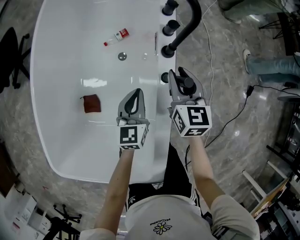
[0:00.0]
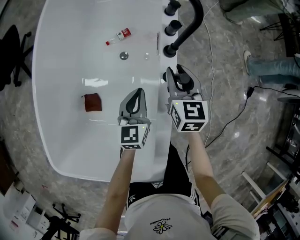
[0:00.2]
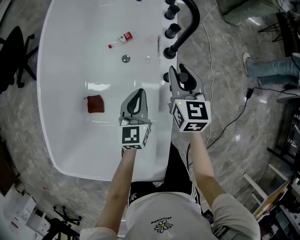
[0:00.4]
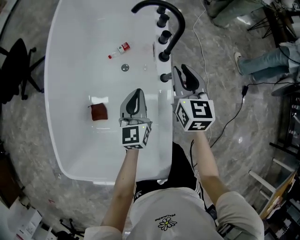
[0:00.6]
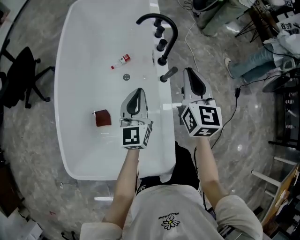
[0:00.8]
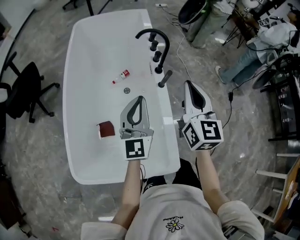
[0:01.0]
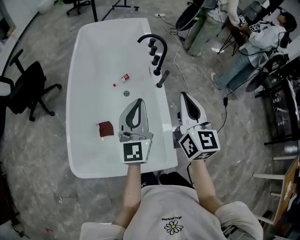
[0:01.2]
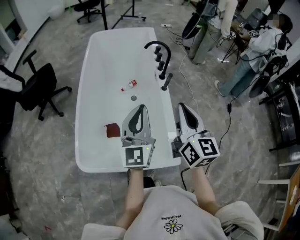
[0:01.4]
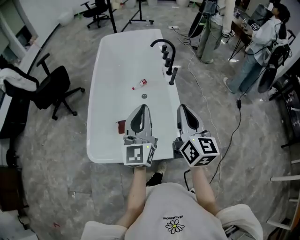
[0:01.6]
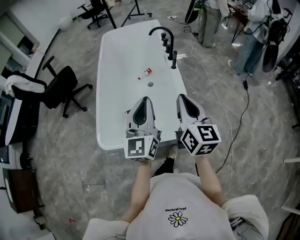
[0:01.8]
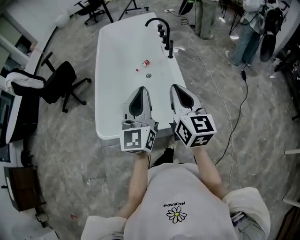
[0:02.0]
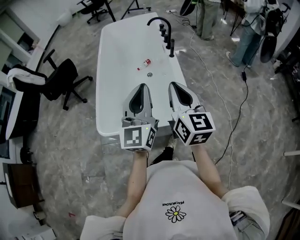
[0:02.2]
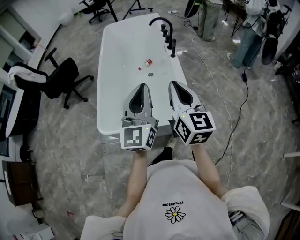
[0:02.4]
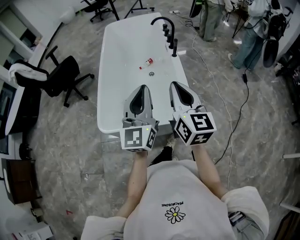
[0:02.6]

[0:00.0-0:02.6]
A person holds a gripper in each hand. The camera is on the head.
0:00.0 to 0:01.2: Both grippers travel together upward and backward, roughly 50 cm. The left gripper points its fingers about 30 degrees further upward, while the right gripper turns by approximately 30 degrees, and closes its fingers.
0:01.2 to 0:02.6: Both grippers travel together backward, about 20 cm.

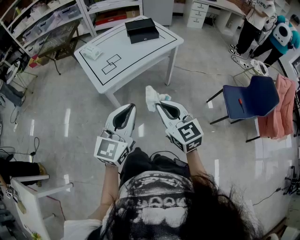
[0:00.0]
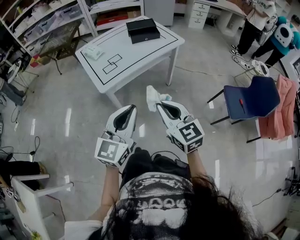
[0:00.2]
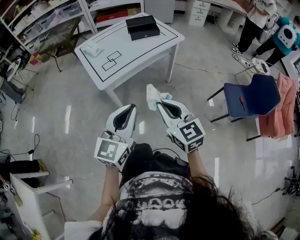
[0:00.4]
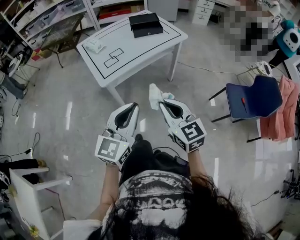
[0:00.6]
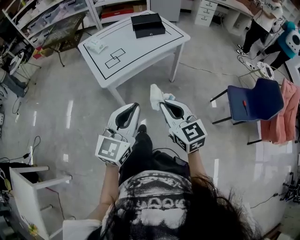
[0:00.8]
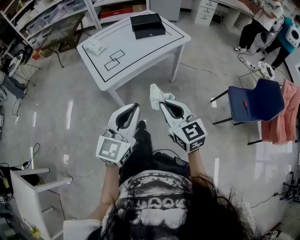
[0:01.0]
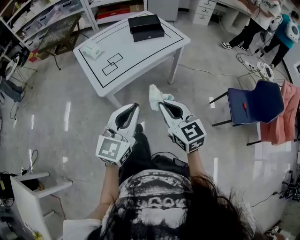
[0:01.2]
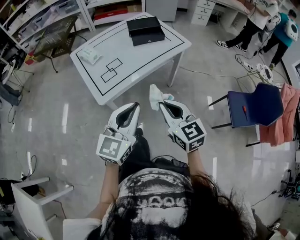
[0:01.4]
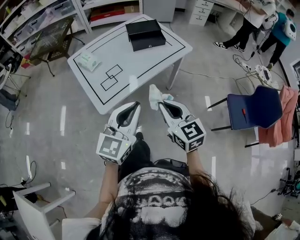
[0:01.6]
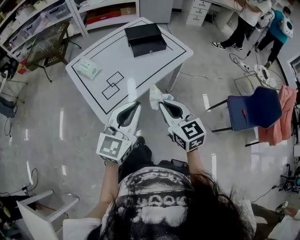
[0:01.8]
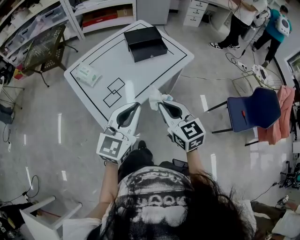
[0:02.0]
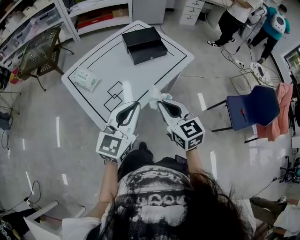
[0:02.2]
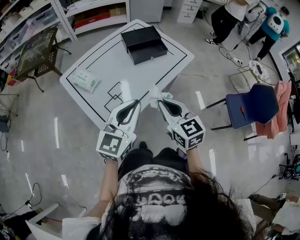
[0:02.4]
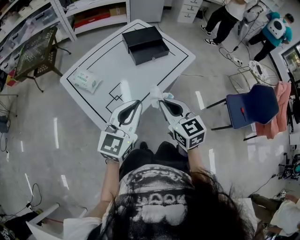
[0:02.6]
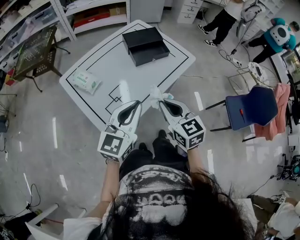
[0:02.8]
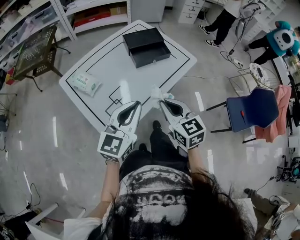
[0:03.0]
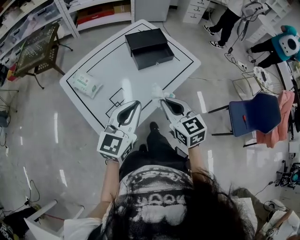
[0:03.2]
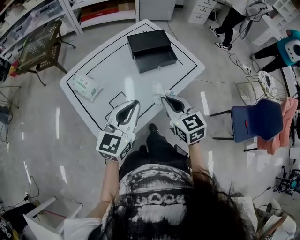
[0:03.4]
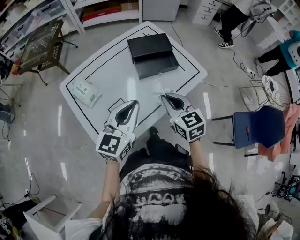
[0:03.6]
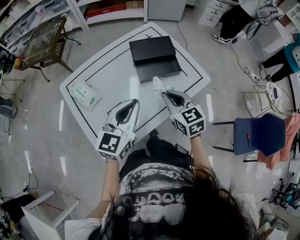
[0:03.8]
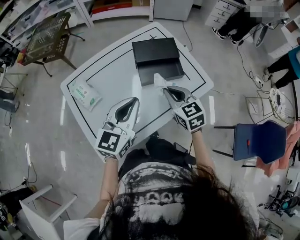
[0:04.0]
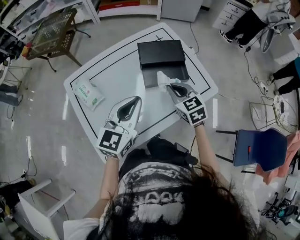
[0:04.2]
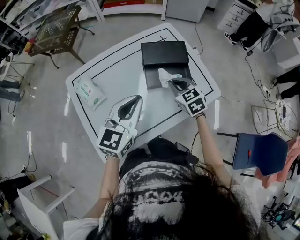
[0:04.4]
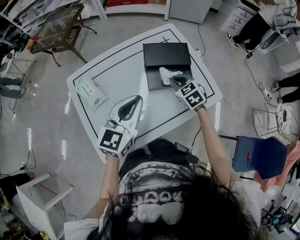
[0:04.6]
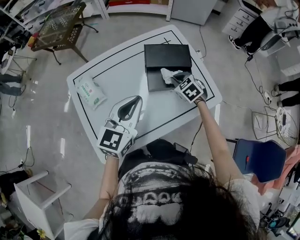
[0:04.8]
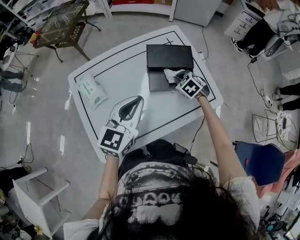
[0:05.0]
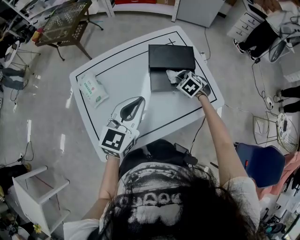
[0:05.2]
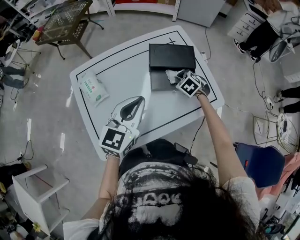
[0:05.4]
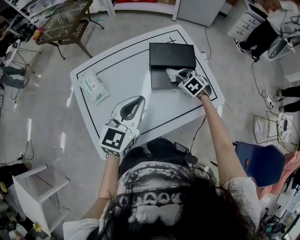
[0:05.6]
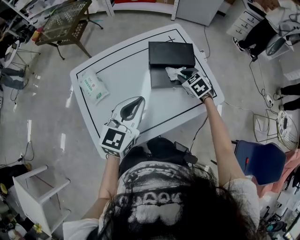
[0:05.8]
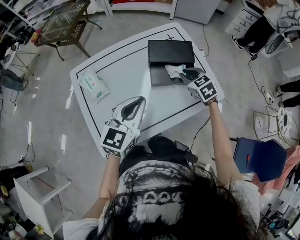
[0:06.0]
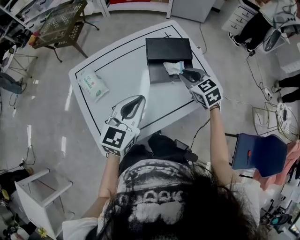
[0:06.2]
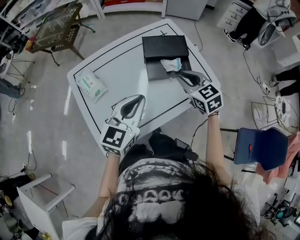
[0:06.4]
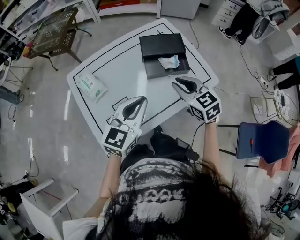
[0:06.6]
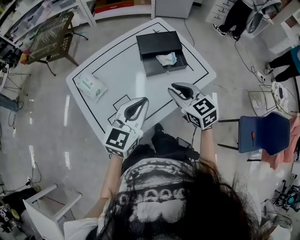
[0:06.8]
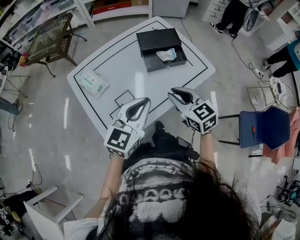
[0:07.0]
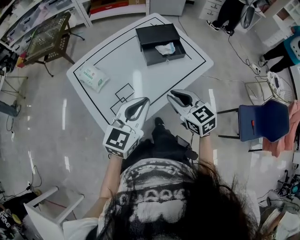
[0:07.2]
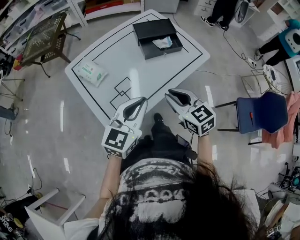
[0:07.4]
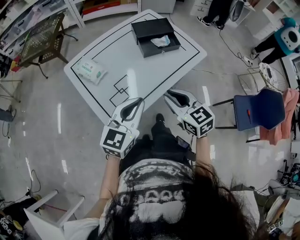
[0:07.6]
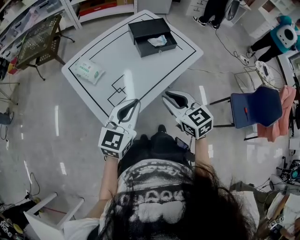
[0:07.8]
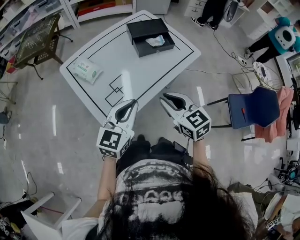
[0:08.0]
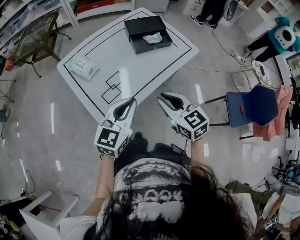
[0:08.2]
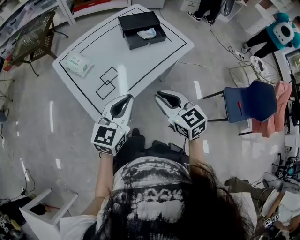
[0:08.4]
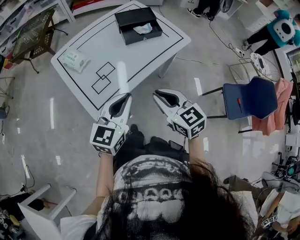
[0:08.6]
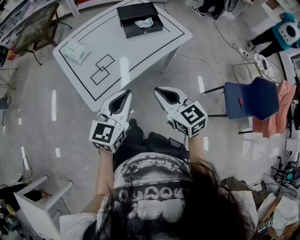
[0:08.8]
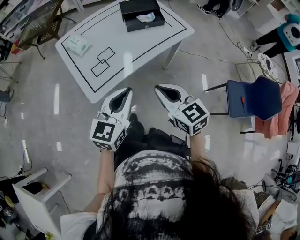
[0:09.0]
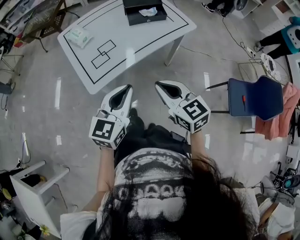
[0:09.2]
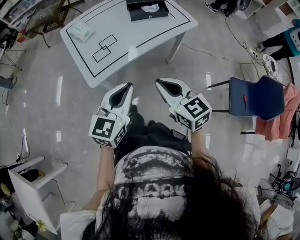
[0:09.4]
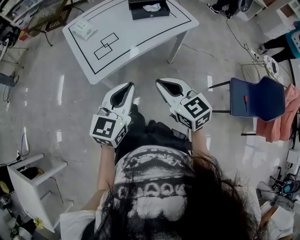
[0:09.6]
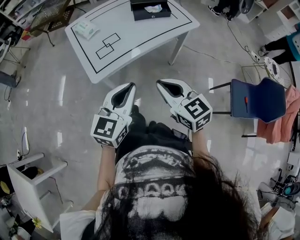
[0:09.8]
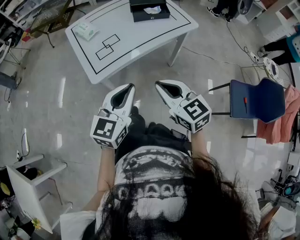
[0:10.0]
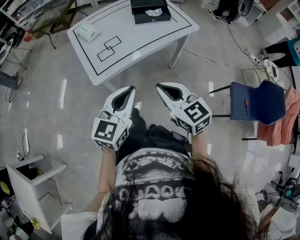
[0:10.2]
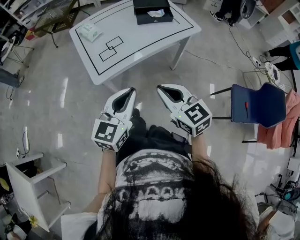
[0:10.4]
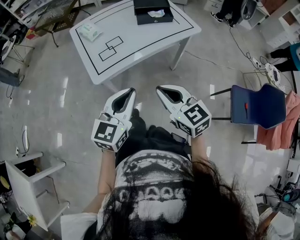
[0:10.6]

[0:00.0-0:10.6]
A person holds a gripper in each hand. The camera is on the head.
0:00.0 to 0:01.6: Both grippers move forward, some 20 cm.
0:01.6 to 0:03.0: The two grippers go about 20 cm forward and to the left.
0:03.0 to 0:04.6: The two grippers go roughly 30 cm forward. The right gripper rotates approximately 40 degrees.
0:04.6 to 0:06.0: The right gripper travels downward and back again, roughly 5 cm each way.
0:06.0 to 0:07.6: The left gripper shifts some 25 cm backward. The right gripper travels backward by about 35 cm, and turns by about 30 degrees.
0:07.6 to 0:09.0: The two grippers go some 15 cm backward and to the right.
0:09.0 to 0:10.6: The two grippers go roughly 10 cm backward.

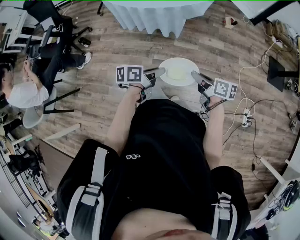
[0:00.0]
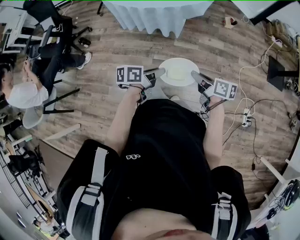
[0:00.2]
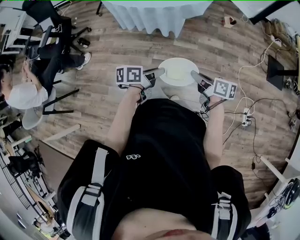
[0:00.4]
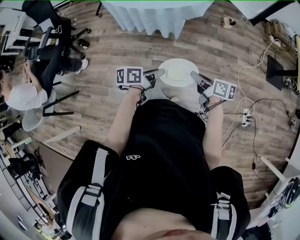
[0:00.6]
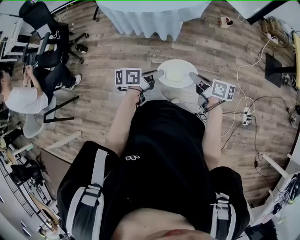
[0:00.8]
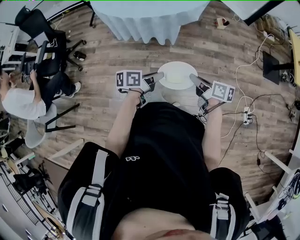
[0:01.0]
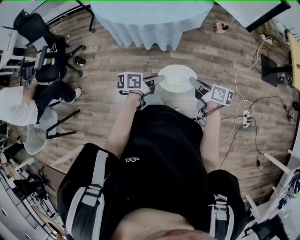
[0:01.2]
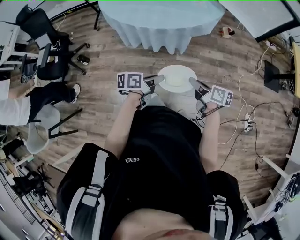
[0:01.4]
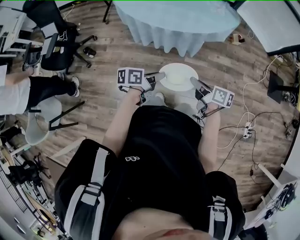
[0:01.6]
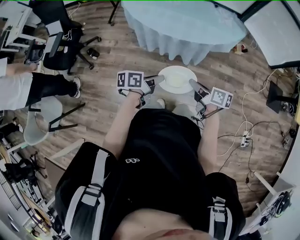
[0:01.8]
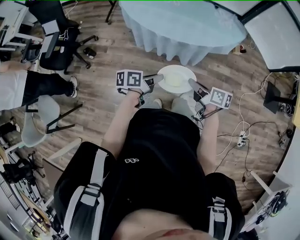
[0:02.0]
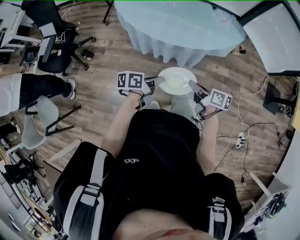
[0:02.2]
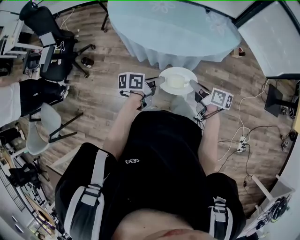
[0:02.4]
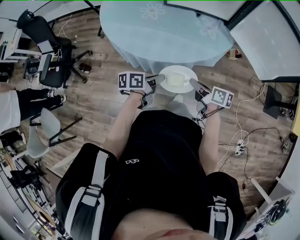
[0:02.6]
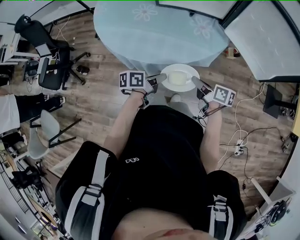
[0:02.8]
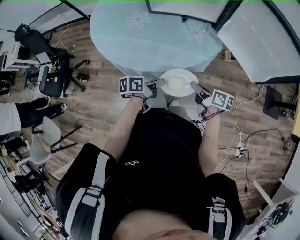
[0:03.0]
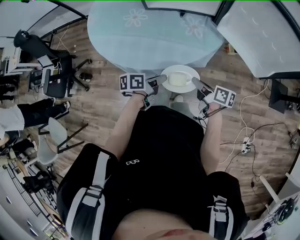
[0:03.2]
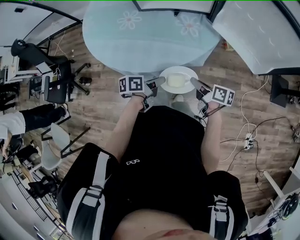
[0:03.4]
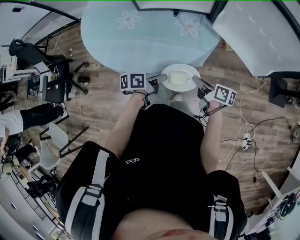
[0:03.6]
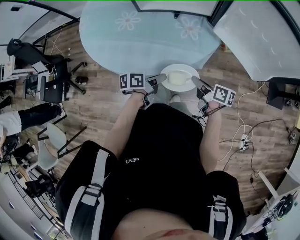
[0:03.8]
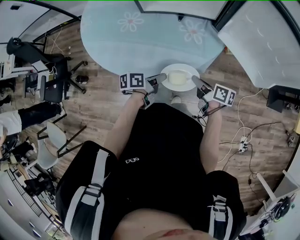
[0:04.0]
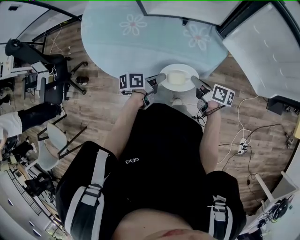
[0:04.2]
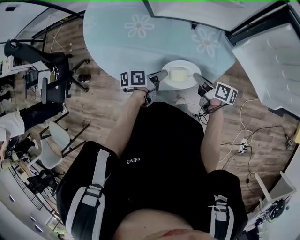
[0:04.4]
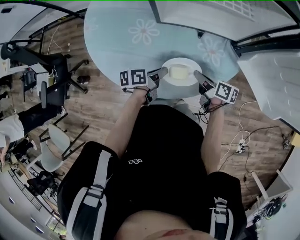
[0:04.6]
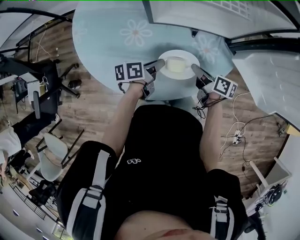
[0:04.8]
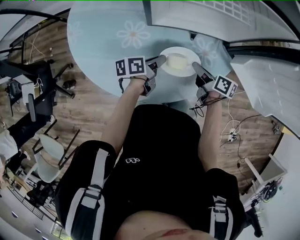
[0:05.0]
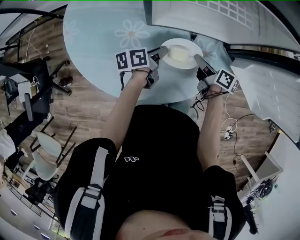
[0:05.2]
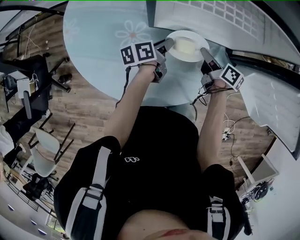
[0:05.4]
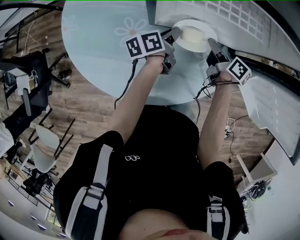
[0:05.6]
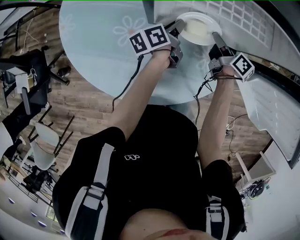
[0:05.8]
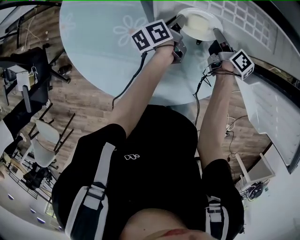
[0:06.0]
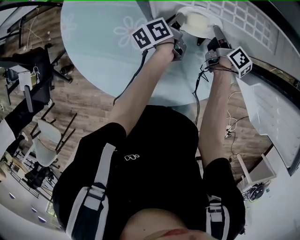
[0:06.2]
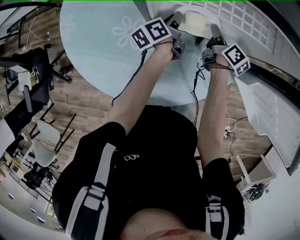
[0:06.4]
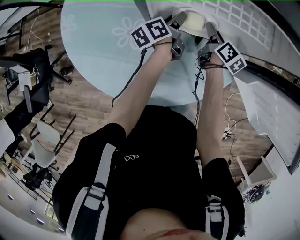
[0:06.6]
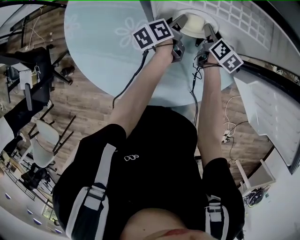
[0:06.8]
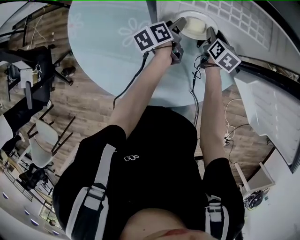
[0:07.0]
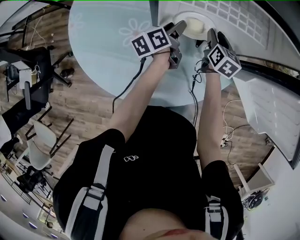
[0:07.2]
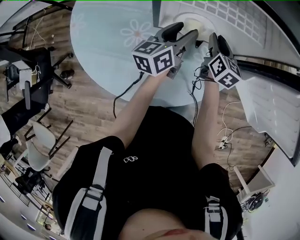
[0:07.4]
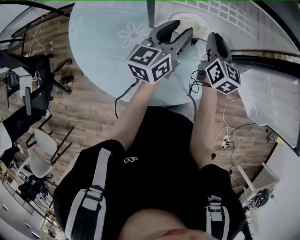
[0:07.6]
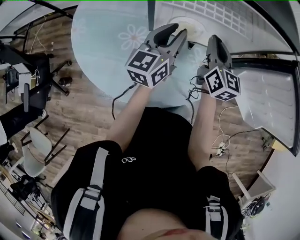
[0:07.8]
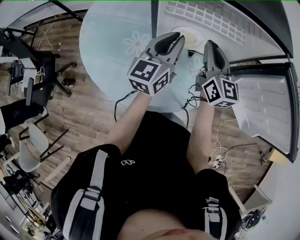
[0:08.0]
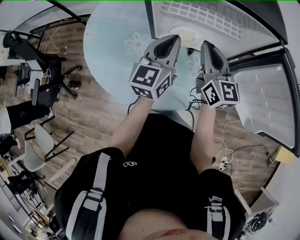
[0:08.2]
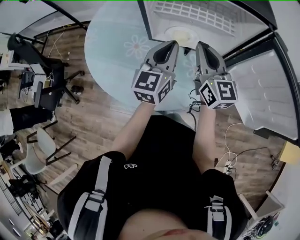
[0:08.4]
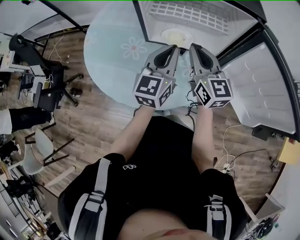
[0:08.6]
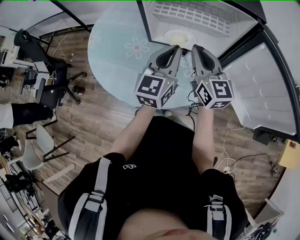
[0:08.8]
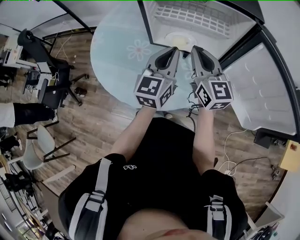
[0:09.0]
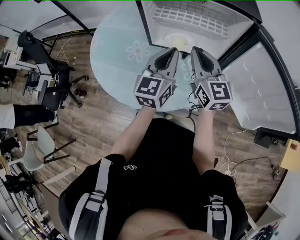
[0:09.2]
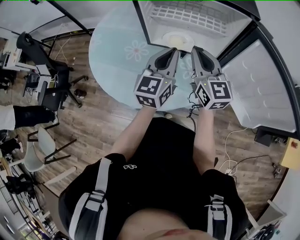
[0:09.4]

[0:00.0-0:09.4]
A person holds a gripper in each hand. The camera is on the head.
0:00.0 to 0:01.6: The grippers both shift to the left and forward by approximately 20 cm.
0:01.6 to 0:03.2: The two grippers go approximately 30 cm forward and to the right.
0:03.2 to 0:04.8: Both grippers move forward and to the left, about 25 cm.
0:04.8 to 0:06.2: Both grippers travel together forward, some 25 cm. The right gripper changes its angle by some 20 degrees, while the left gripper rotates some 30 degrees.
0:06.2 to 0:07.8: Both grippers move upward and backward, roughly 20 cm. The right gripper twists about 50 degrees counterclockwise, seen from behind, and opens and closes again. Meanwhile the left gripper rolls clockwise, seen from behind, by roughly 50 degrees, and opens, then closes again.
0:07.8 to 0:09.4: The right gripper moves backward and upward, approximately 10 cm, and changes its angle by roughly 20 degrees. Meanwhile the left gripper goes about 15 cm backward and to the right, and closes its fingers.

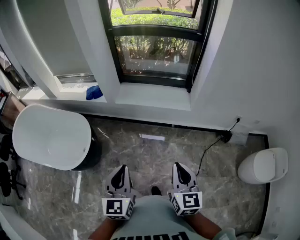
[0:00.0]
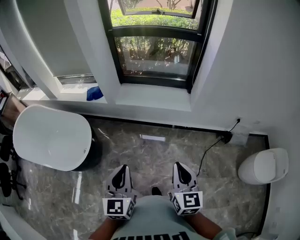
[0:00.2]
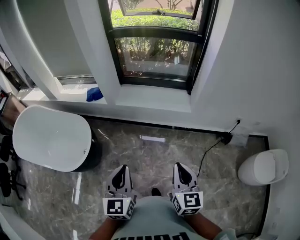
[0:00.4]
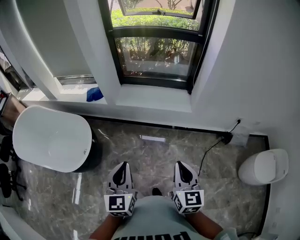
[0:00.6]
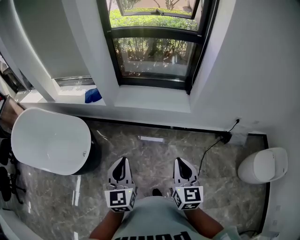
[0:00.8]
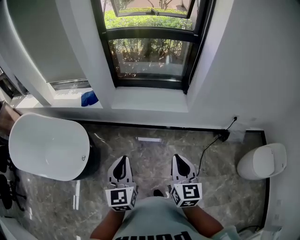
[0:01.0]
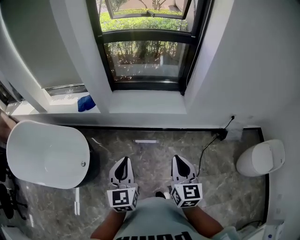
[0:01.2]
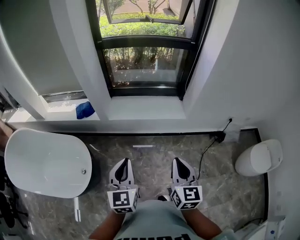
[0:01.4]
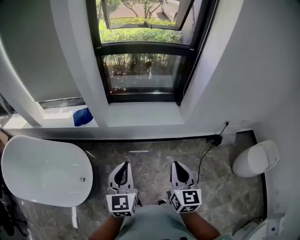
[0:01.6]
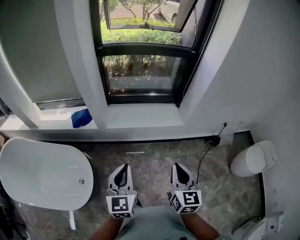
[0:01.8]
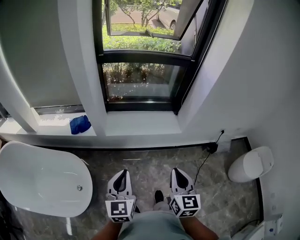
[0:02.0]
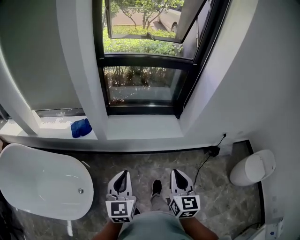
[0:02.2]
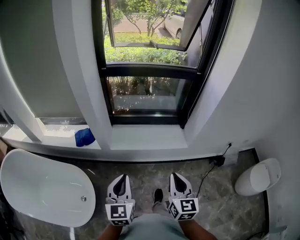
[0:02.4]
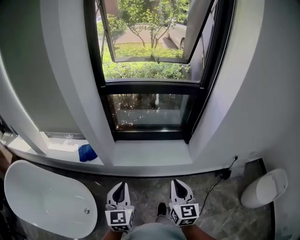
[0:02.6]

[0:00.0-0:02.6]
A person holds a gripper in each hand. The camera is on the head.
0:00.0 to 0:01.2: Both grippers move forward, roughly 10 cm.
0:01.2 to 0:02.6: The right gripper heads forward, covering approximately 20 cm; the left gripper goes approximately 25 cm forward and to the left.
